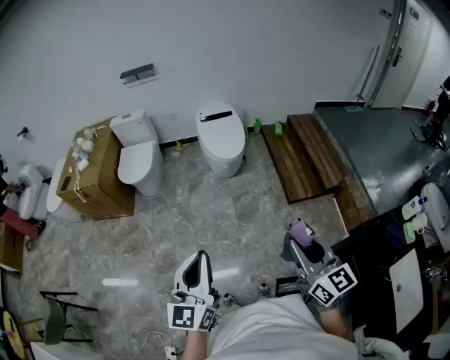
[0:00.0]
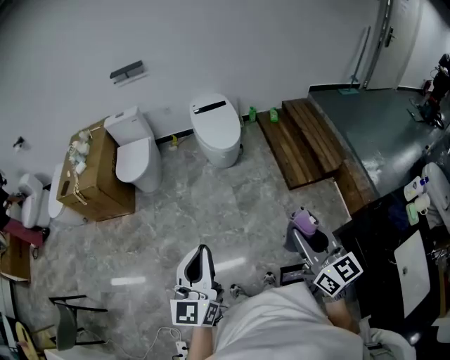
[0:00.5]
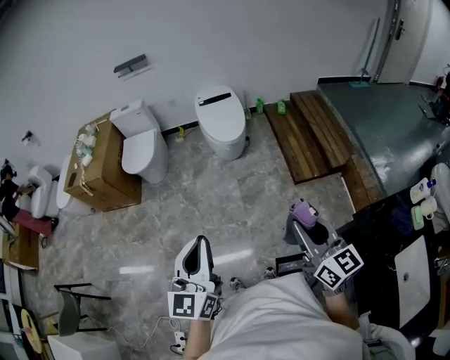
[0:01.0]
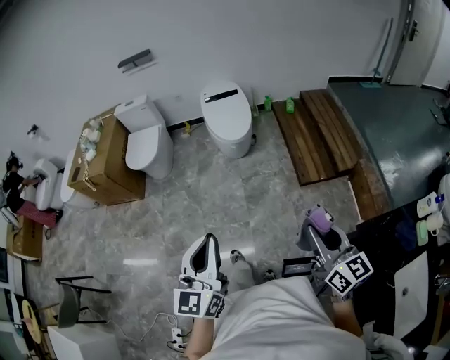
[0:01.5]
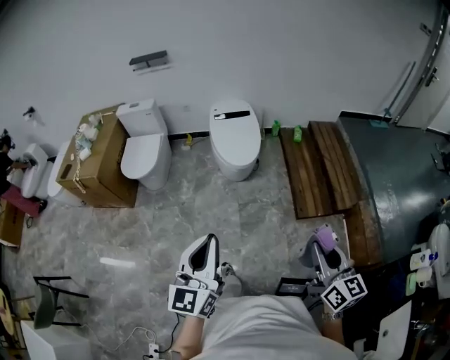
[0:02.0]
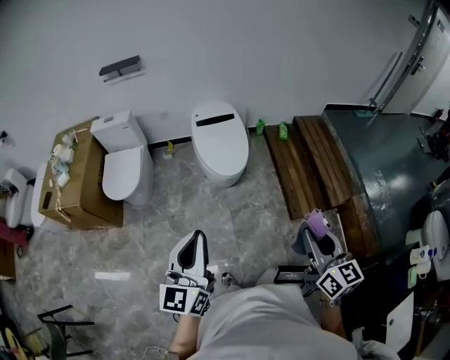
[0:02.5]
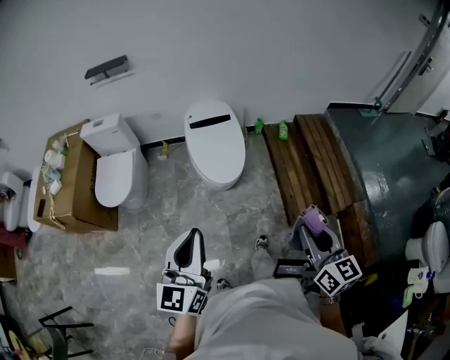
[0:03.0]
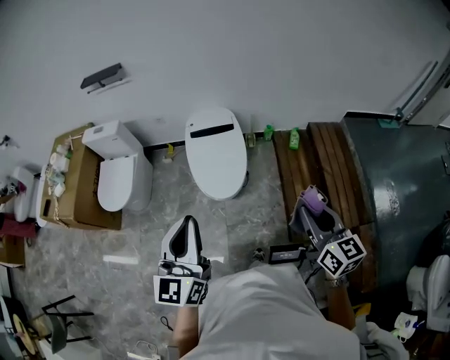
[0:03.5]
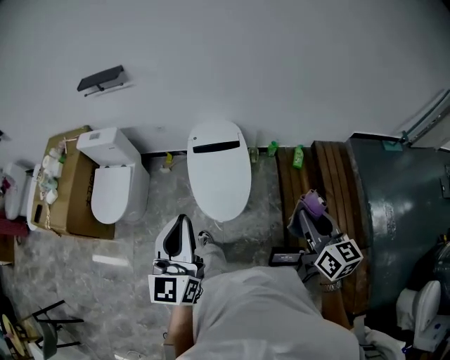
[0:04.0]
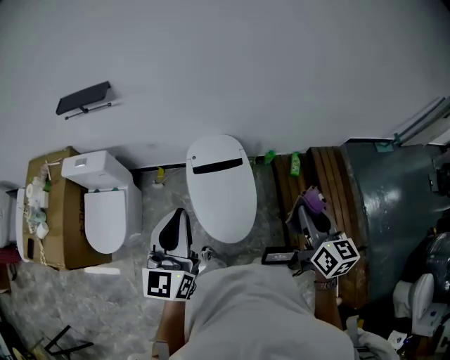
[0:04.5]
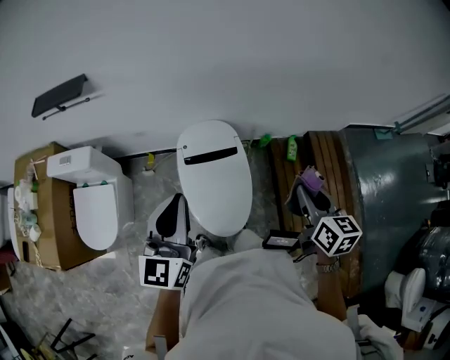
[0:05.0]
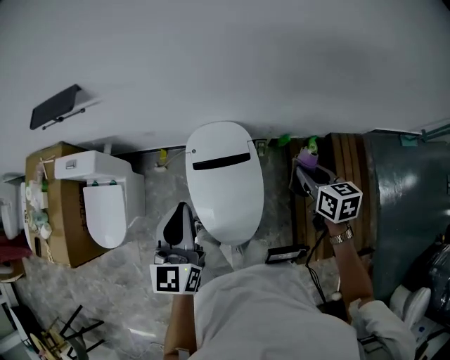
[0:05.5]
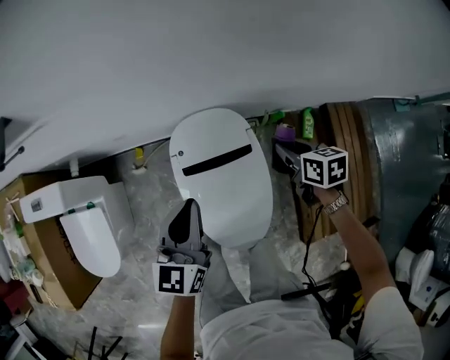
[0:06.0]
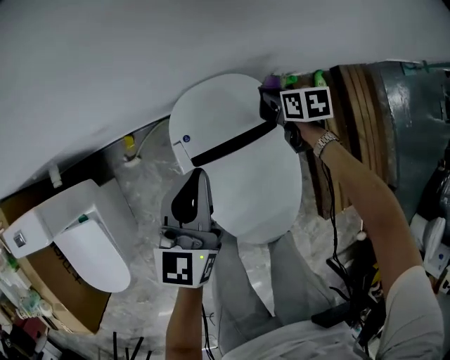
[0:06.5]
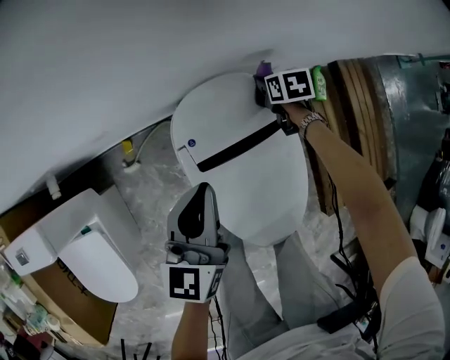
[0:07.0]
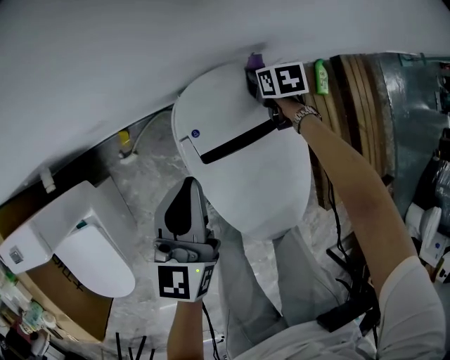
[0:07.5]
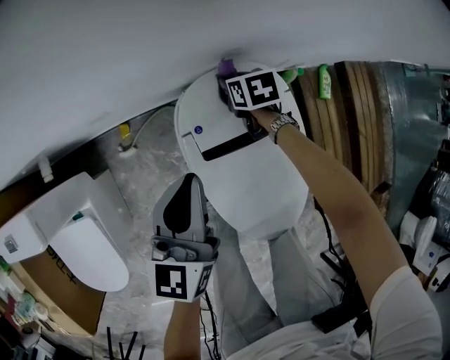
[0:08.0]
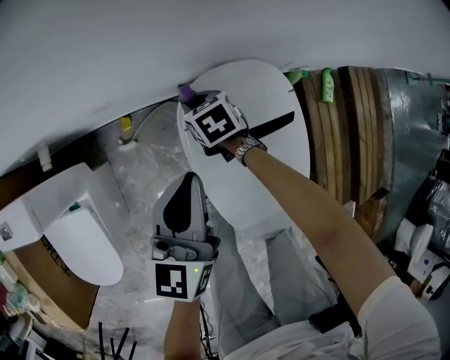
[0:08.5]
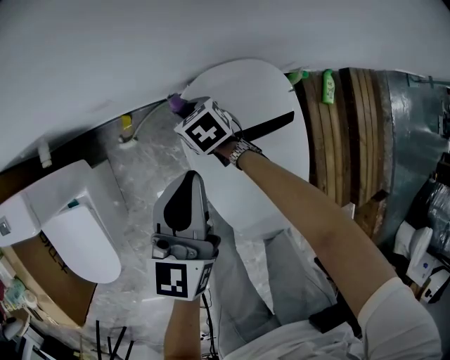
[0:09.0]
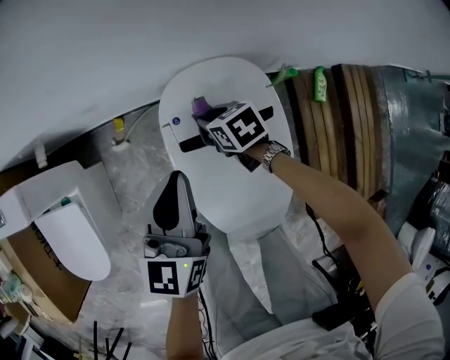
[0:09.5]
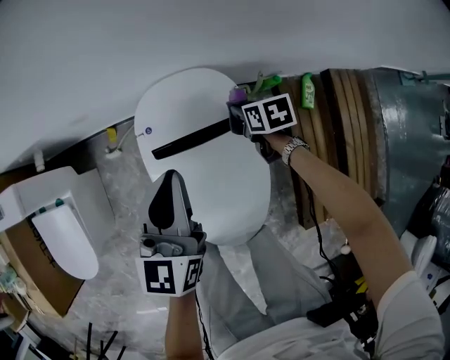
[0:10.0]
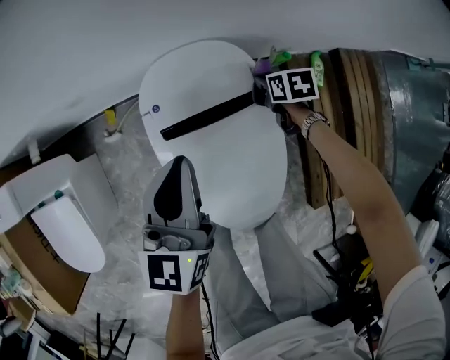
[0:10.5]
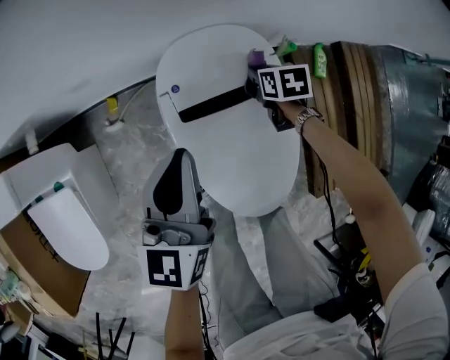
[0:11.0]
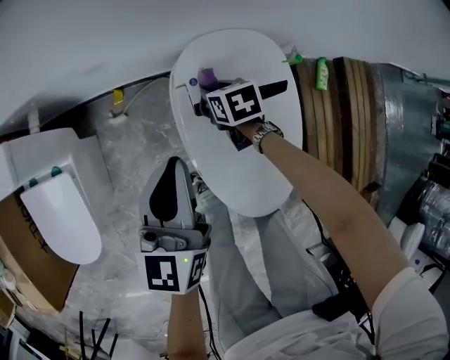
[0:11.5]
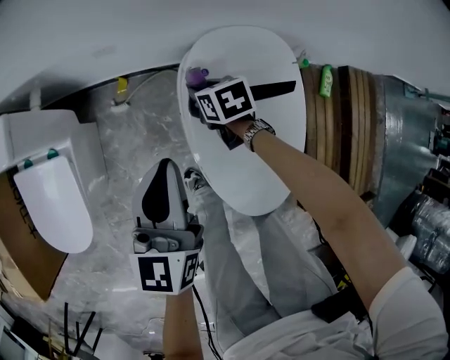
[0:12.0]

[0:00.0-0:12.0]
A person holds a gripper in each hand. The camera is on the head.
0:00.0 to 0:02.0: The left gripper heads forward, covering approximately 20 cm. Meanwhile the right gripper heads forward and to the right, covering about 20 cm.
0:02.0 to 0:04.0: The pair of grippers is taken forward, roughly 60 cm.
0:04.0 to 0:06.0: Both grippers are carried forward, about 50 cm. Both grippers travel together downward, approximately 30 cm. The left gripper swivels roughly 30 degrees. The right gripper tilts its fingers some 40 degrees downward.
0:06.0 to 0:08.0: The right gripper heads downward, to the left and forward, covering roughly 35 cm; the left gripper goes about 20 cm downward, to the left and forward.
0:08.0 to 0:10.0: The left gripper goes roughly 15 cm to the right, backward and upward. The right gripper travels to the right and backward by approximately 20 cm.
0:10.0 to 0:12.0: The two grippers go about 25 cm to the left.

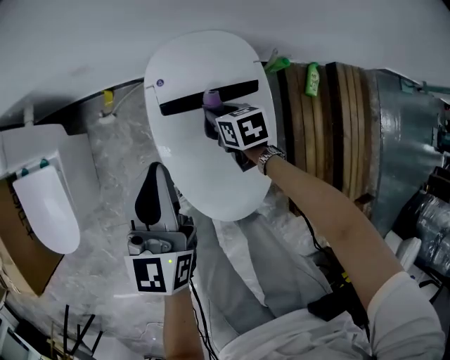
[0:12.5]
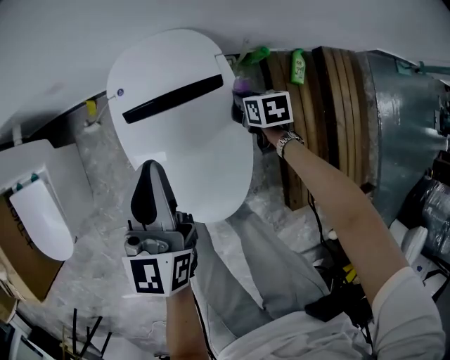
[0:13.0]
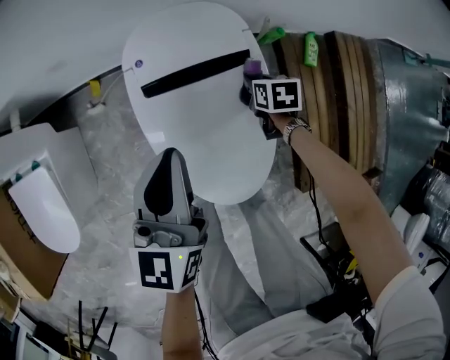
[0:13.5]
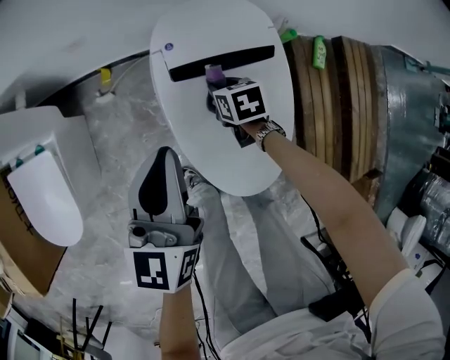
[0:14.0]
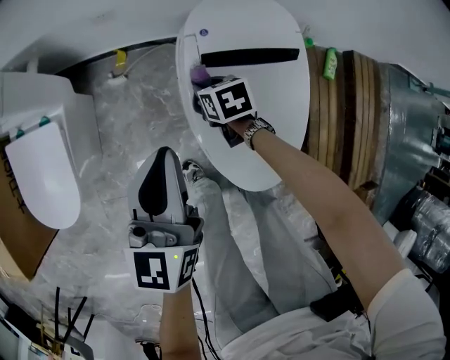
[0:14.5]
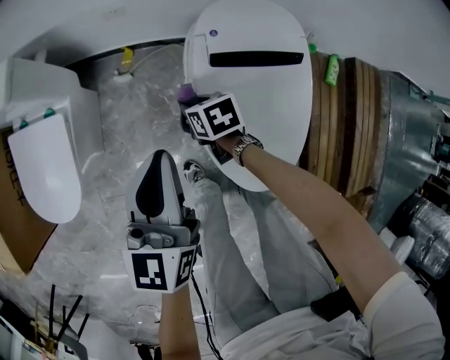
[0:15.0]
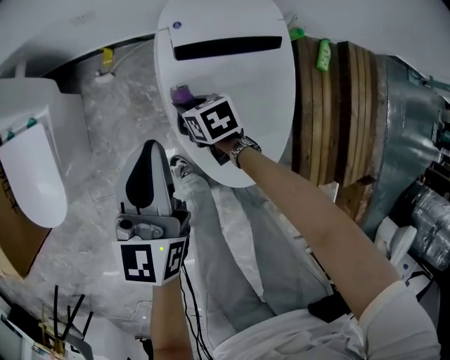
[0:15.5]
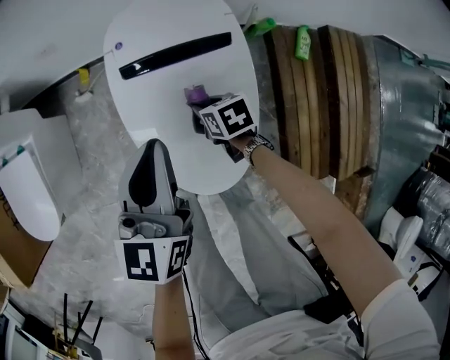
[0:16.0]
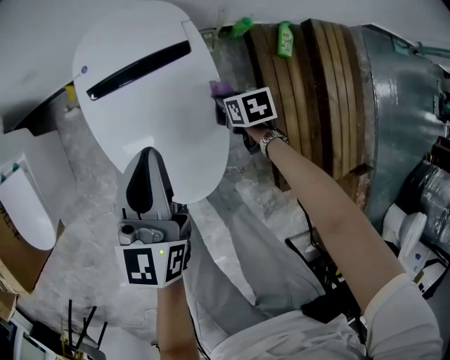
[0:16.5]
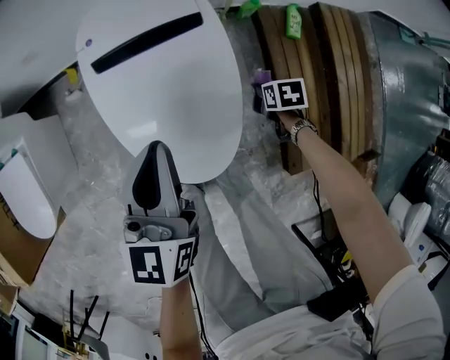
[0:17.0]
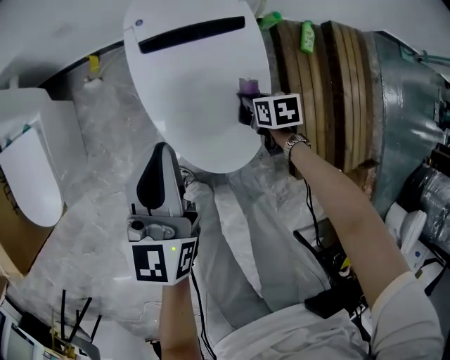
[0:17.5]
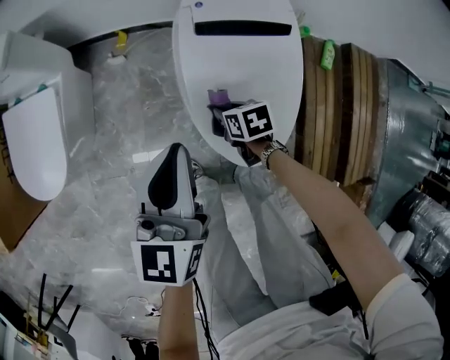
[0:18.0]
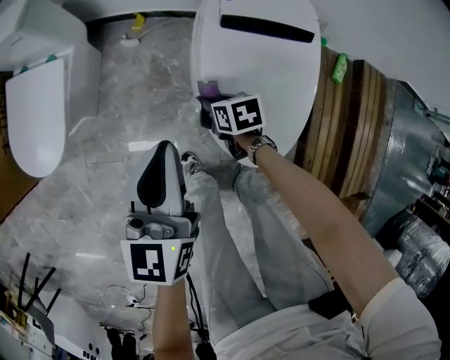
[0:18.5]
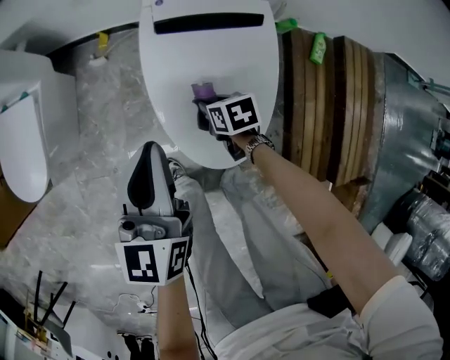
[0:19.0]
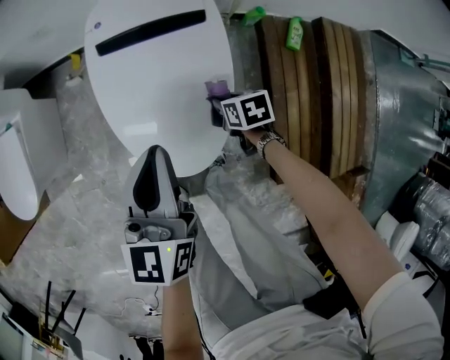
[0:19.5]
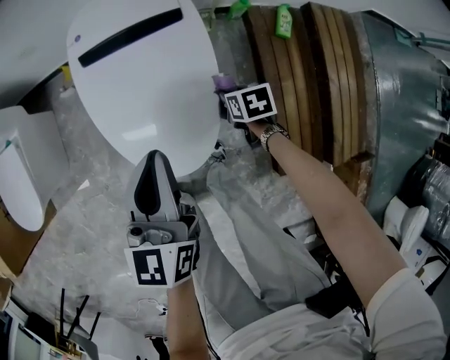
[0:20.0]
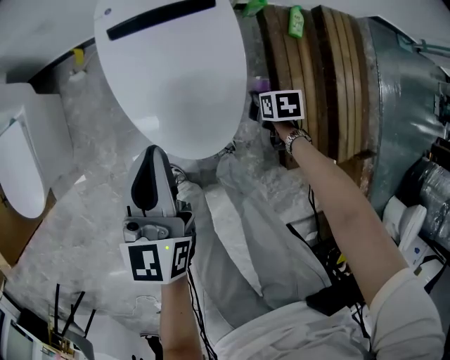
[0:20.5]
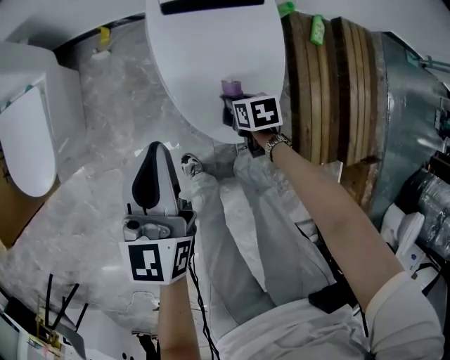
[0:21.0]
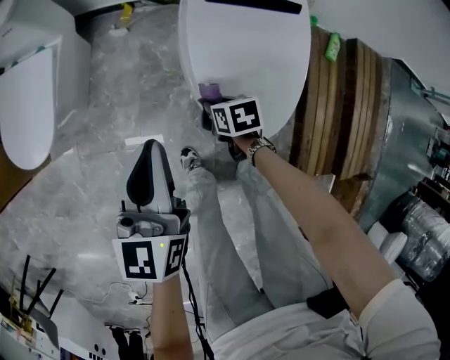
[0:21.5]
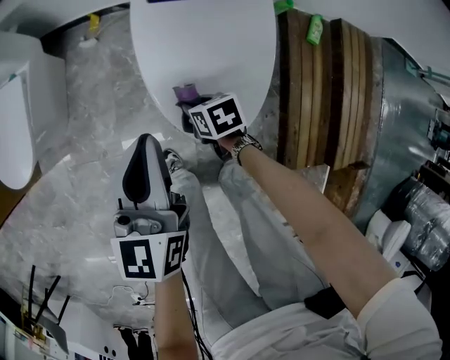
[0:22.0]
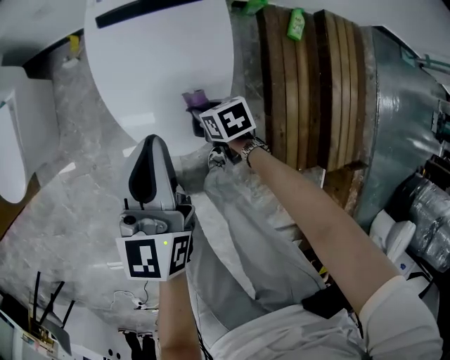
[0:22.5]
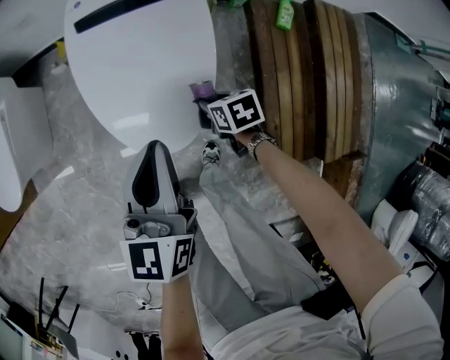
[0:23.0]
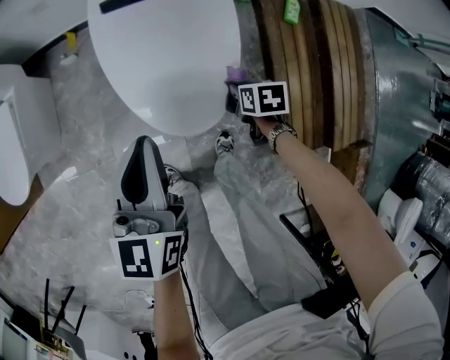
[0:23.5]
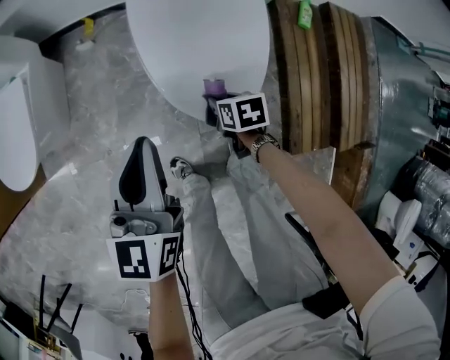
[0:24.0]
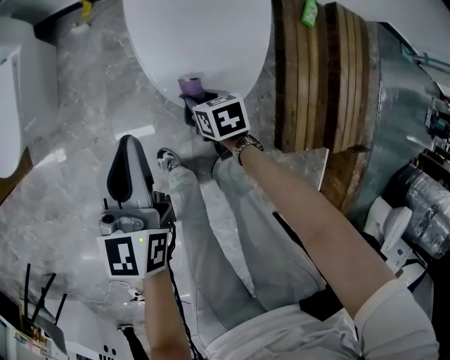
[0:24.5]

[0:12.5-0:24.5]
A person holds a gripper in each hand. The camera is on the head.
0:12.5 to 0:14.5: The right gripper shifts some 15 cm to the left; the left gripper heads to the left and backward, covering approximately 10 cm.
0:14.5 to 0:16.5: The left gripper goes roughly 25 cm to the right. The right gripper heads to the right and backward, covering about 35 cm.
0:16.5 to 0:18.5: The right gripper shifts by about 40 cm, while the left gripper changes place by about 30 cm.
0:18.5 to 0:20.5: The left gripper shifts by roughly 20 cm. The right gripper changes place by approximately 40 cm, and changes its angle by roughly 30 degrees.
0:20.5 to 0:22.5: The right gripper changes its angle by approximately 30 degrees.
0:22.5 to 0:24.5: Both grippers move to the left, roughly 15 cm.

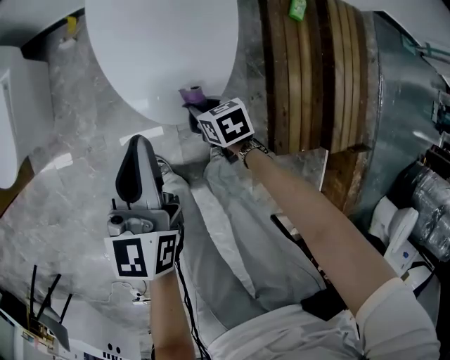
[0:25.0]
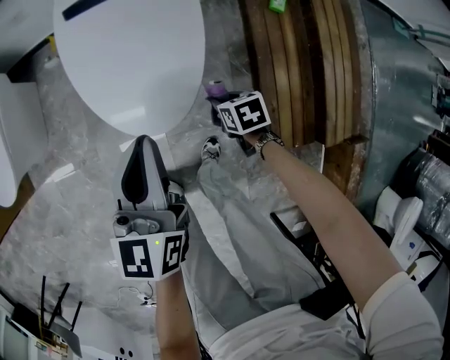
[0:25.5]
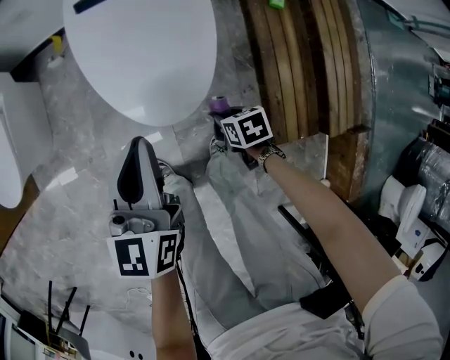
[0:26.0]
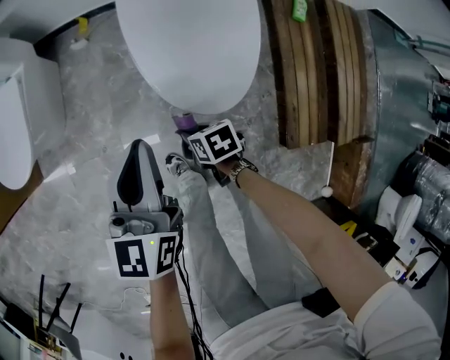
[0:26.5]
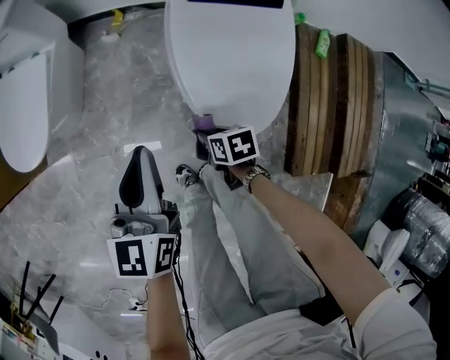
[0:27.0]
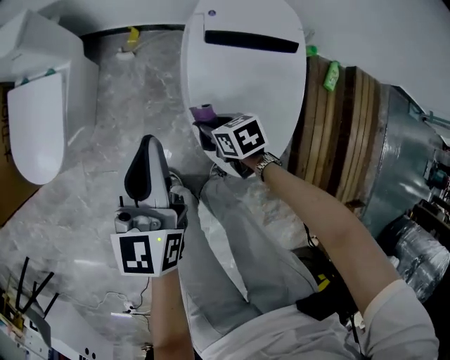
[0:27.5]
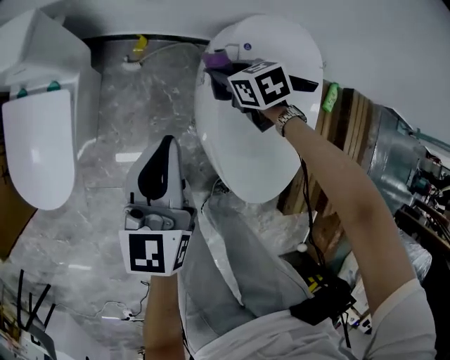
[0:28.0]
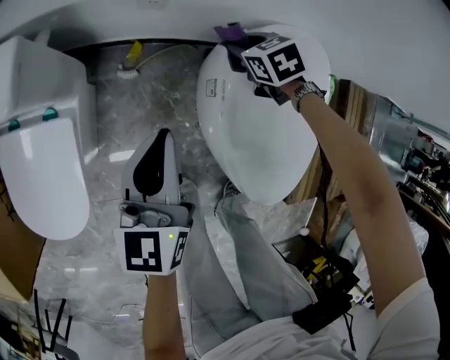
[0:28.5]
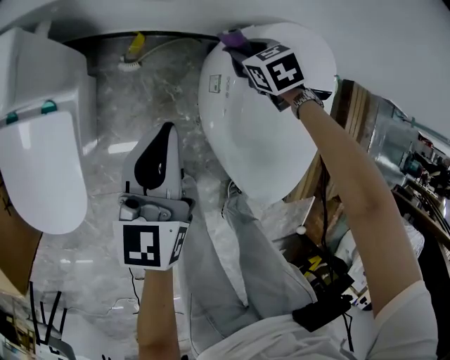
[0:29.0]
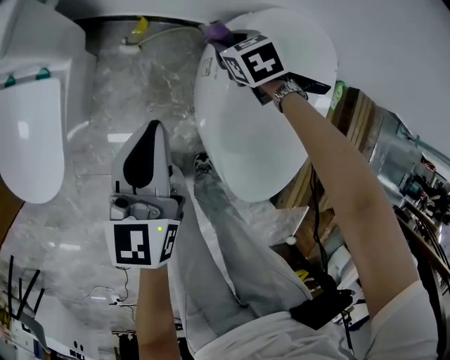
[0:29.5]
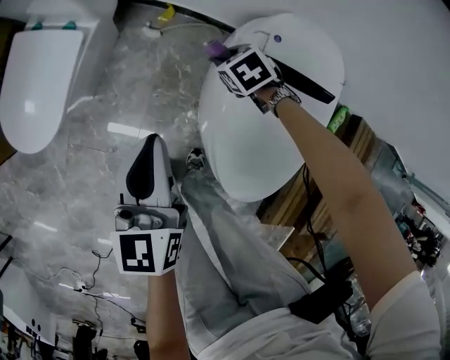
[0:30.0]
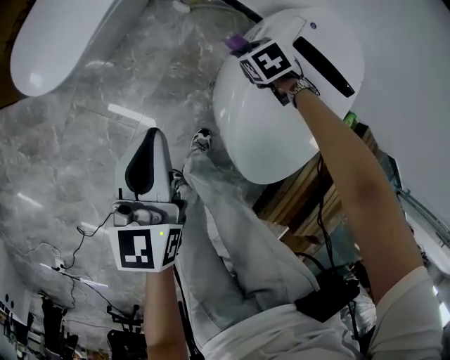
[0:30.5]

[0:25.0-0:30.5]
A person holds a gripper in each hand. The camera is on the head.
0:25.0 to 0:27.0: The left gripper heads to the left and forward, covering approximately 20 cm, while the right gripper shifts about 15 cm to the left.
0:27.0 to 0:28.5: The left gripper ends up about 40 cm from where it was. Meanwhile the right gripper shifts by approximately 60 cm, and rotates roughly 40 degrees.
0:28.5 to 0:30.5: The right gripper moves roughly 25 cm, and rotates some 30 degrees. The left gripper moves roughly 30 cm, and swivels roughly 30 degrees.
